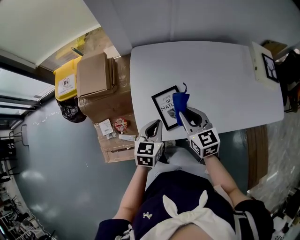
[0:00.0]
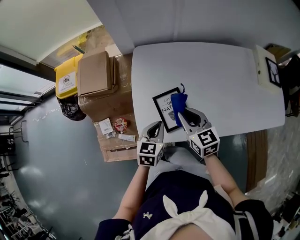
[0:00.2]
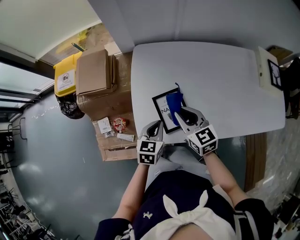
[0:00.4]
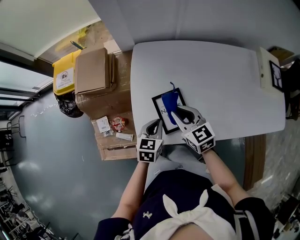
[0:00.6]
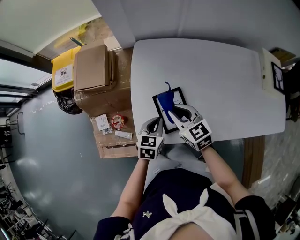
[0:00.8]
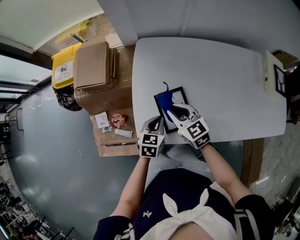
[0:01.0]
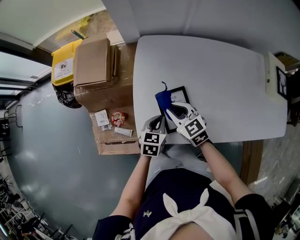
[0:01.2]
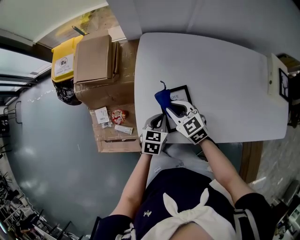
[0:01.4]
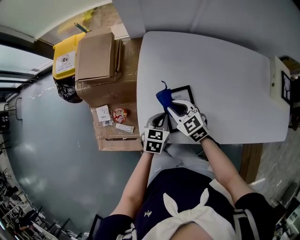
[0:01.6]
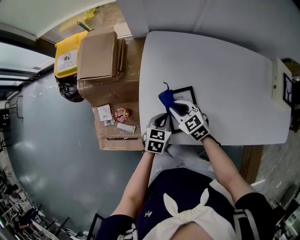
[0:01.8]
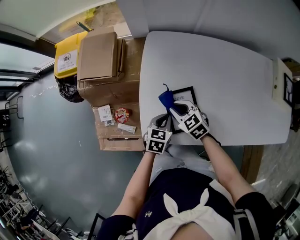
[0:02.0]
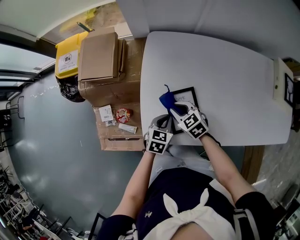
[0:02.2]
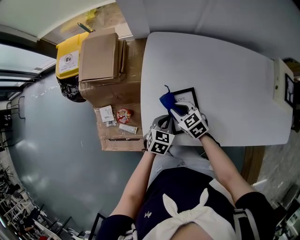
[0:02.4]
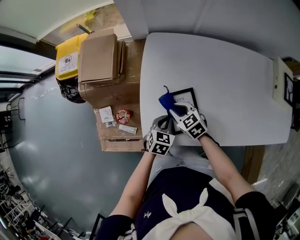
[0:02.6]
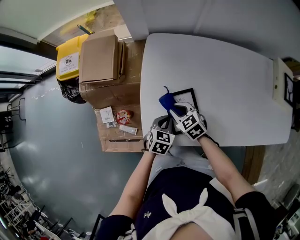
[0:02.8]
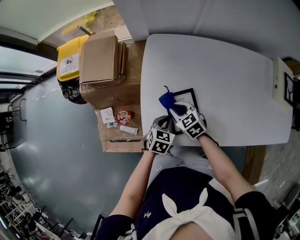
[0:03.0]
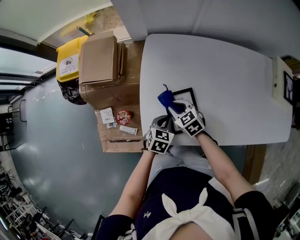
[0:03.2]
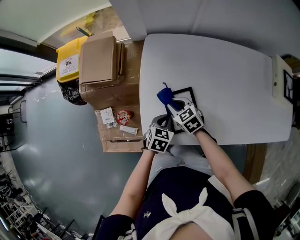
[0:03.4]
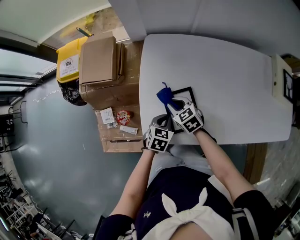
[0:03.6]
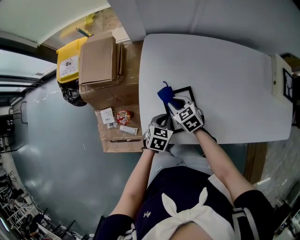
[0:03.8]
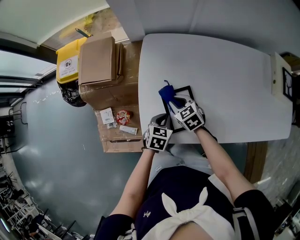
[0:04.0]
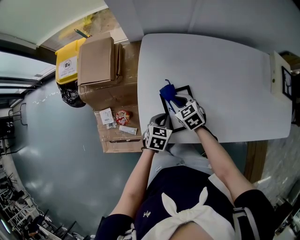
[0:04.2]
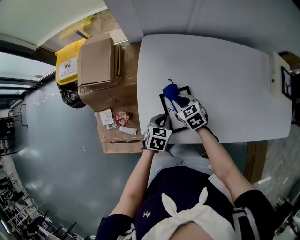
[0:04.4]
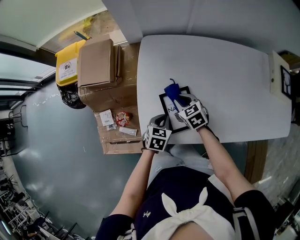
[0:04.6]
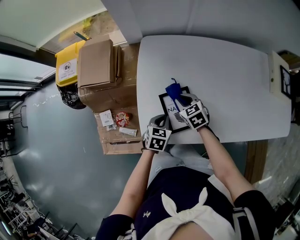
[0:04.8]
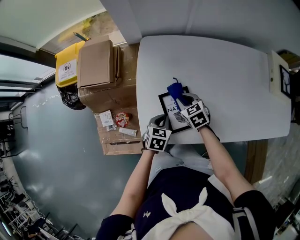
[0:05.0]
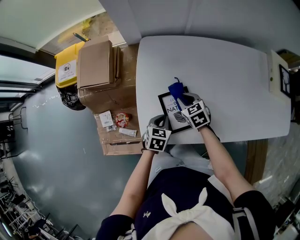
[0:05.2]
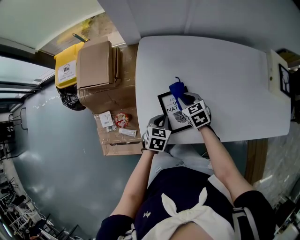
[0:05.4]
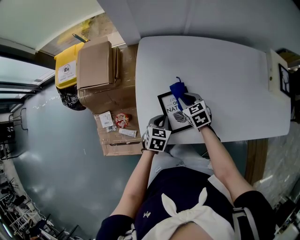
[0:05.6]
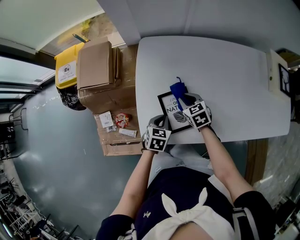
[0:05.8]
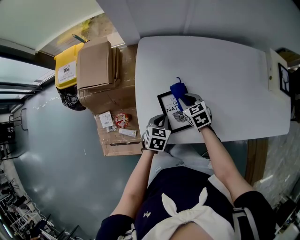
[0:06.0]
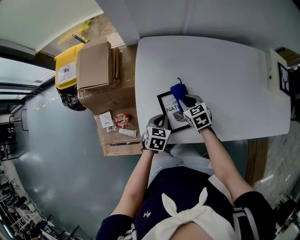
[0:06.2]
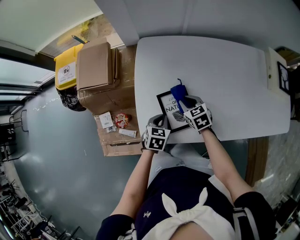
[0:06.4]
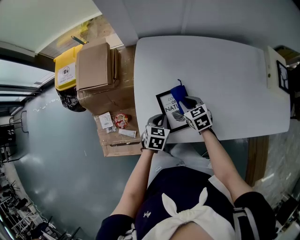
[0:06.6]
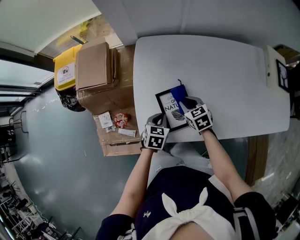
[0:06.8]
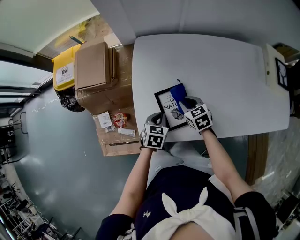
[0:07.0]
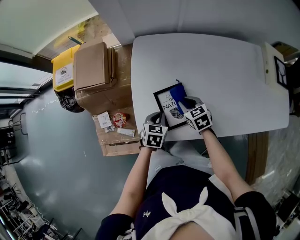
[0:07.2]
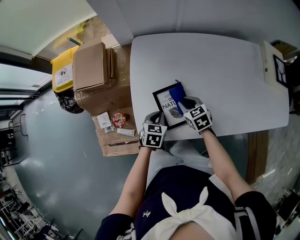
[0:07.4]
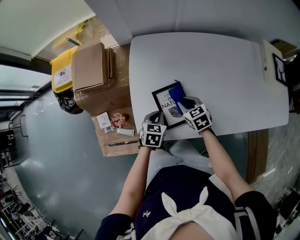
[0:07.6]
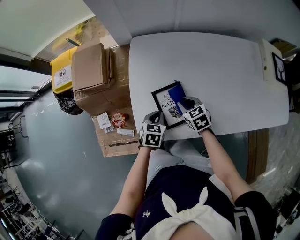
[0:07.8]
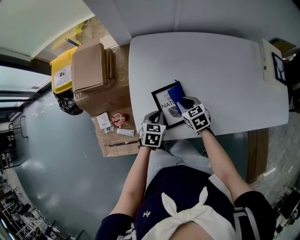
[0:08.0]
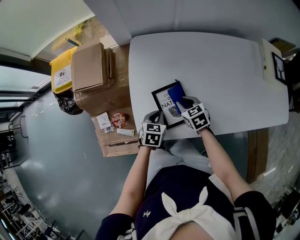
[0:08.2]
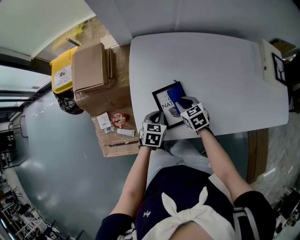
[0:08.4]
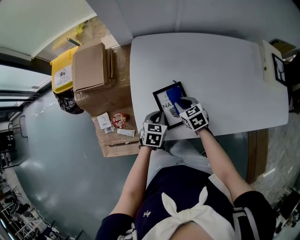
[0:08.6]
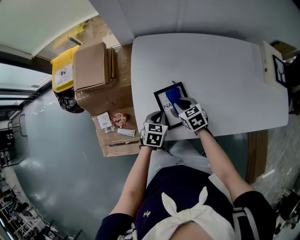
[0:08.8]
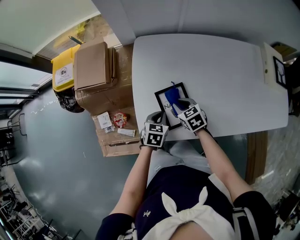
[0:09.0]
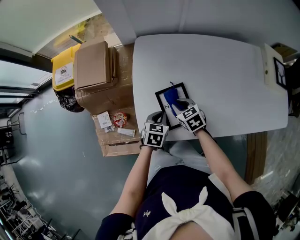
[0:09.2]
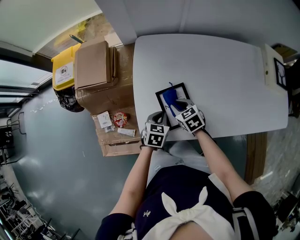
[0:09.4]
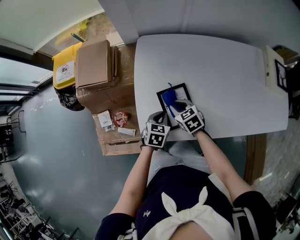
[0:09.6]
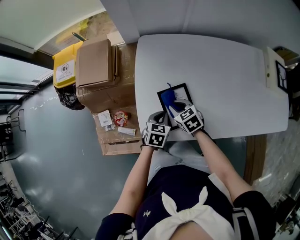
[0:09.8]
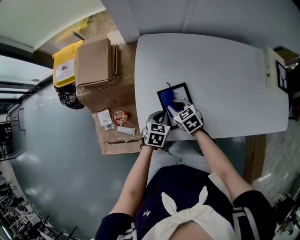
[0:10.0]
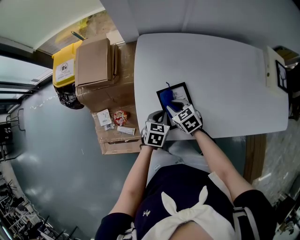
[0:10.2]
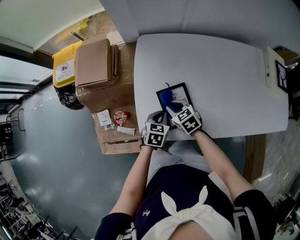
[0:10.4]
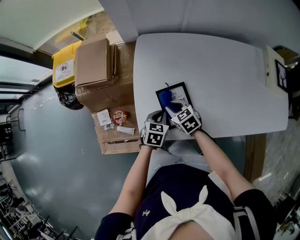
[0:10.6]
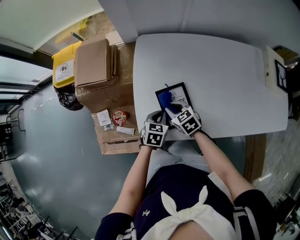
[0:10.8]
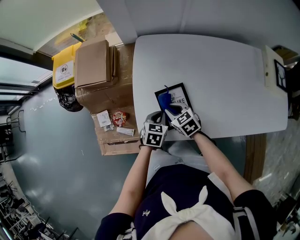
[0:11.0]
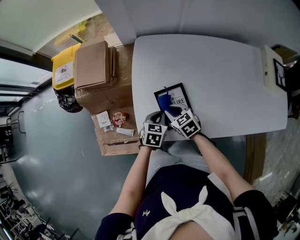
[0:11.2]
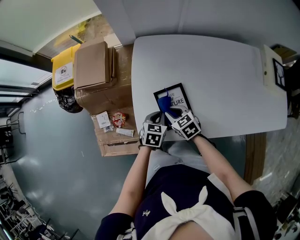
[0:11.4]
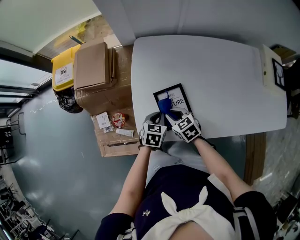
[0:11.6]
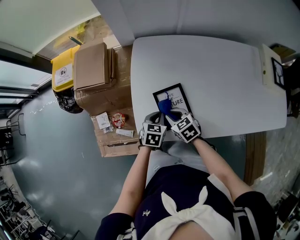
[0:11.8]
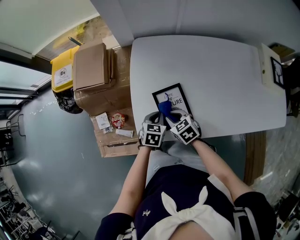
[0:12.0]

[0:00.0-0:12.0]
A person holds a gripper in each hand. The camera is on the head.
0.0 to 1.6 s: The left gripper moves downward, about 10 cm. Meanwhile the right gripper moves downward, to the left and forward, some 15 cm, and rotates about 30 degrees.
1.6 to 3.0 s: The grippers stay close to where they were, moving slightly.
3.0 to 4.4 s: The grippers stay close to where they were, moving slightly.
4.4 to 6.0 s: The grippers stay close to where they were, moving slightly.
6.0 to 9.0 s: The grippers make only small movements.
9.0 to 10.4 s: The grippers stay close to where they were, moving slightly.
10.4 to 12.0 s: The right gripper shifts approximately 5 cm backward.

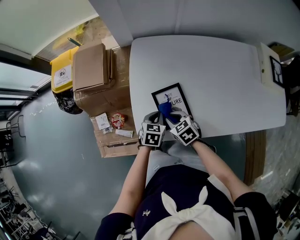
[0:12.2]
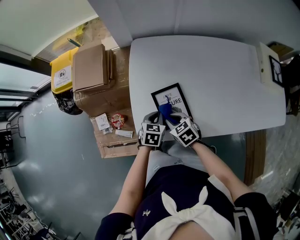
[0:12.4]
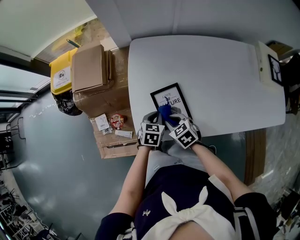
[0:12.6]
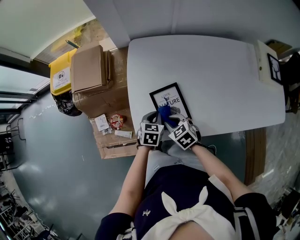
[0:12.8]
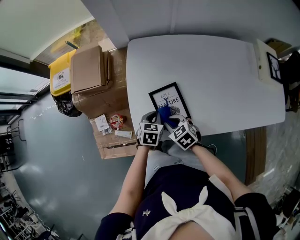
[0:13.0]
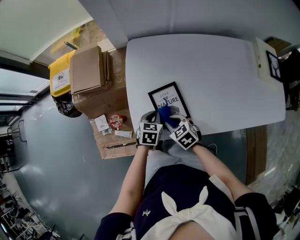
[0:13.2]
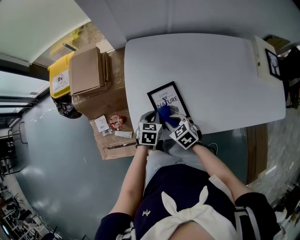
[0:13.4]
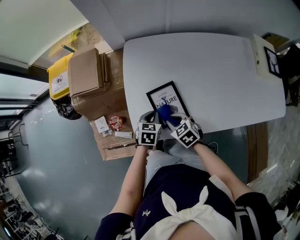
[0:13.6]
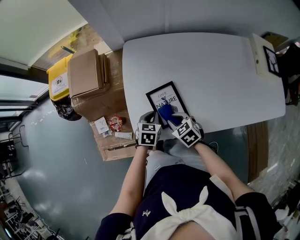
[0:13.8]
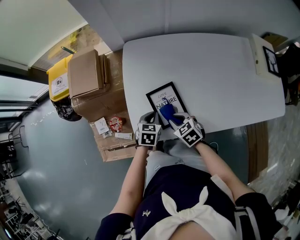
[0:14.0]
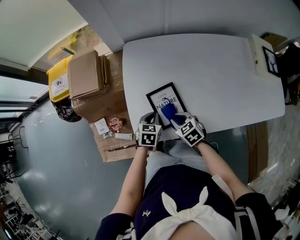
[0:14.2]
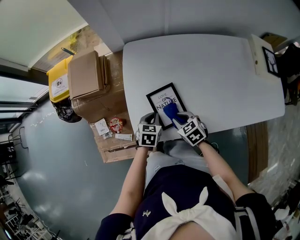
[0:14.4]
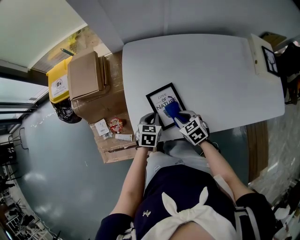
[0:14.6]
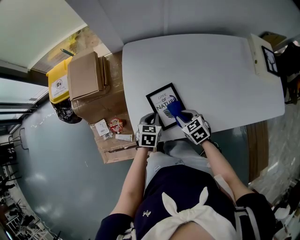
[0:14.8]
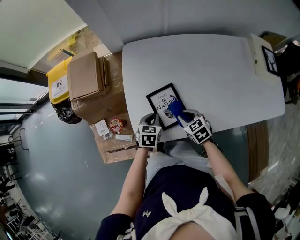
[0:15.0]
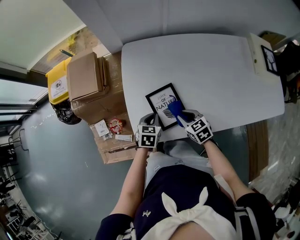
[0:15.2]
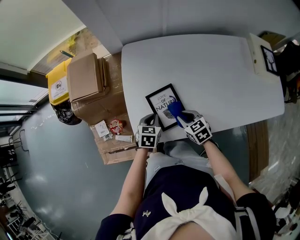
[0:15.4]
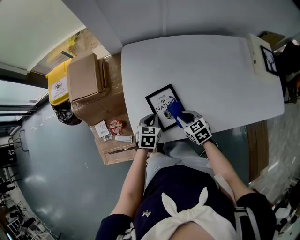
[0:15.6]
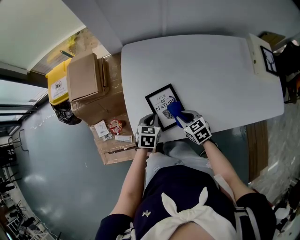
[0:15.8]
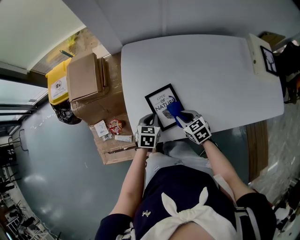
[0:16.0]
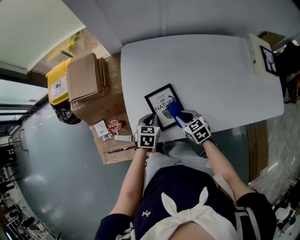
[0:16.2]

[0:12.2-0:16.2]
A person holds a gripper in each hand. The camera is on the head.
12.2 to 13.6 s: The grippers move only a little.
13.6 to 14.8 s: The right gripper moves to the right, some 5 cm.
14.8 to 16.2 s: The grippers make only small movements.

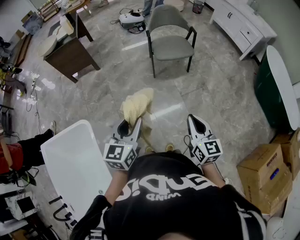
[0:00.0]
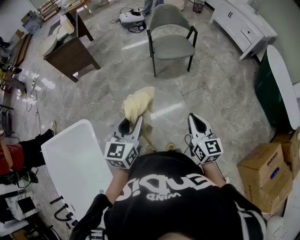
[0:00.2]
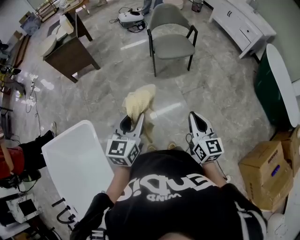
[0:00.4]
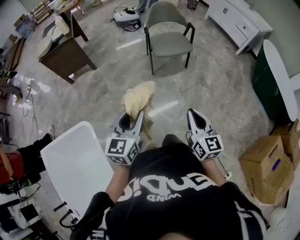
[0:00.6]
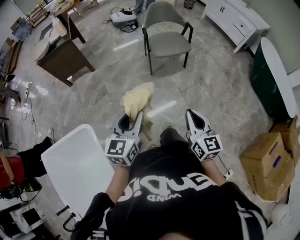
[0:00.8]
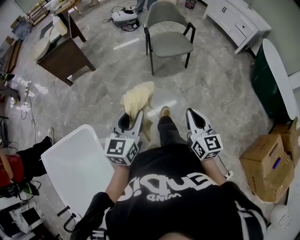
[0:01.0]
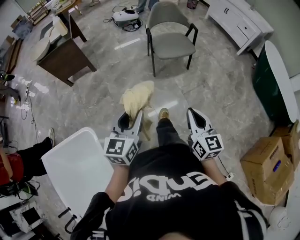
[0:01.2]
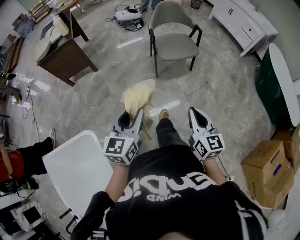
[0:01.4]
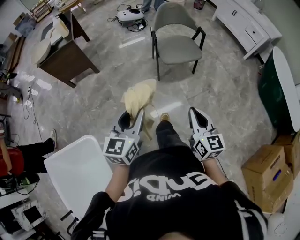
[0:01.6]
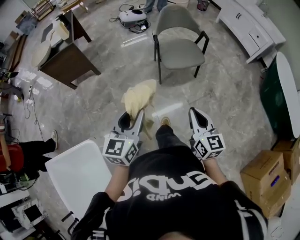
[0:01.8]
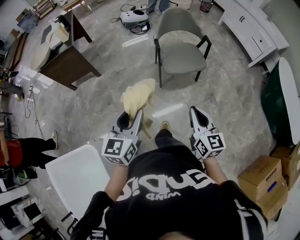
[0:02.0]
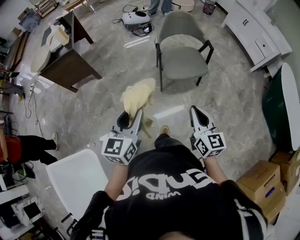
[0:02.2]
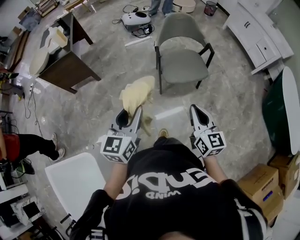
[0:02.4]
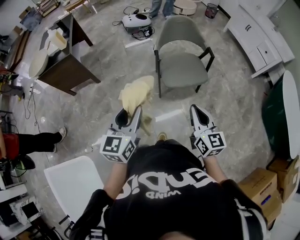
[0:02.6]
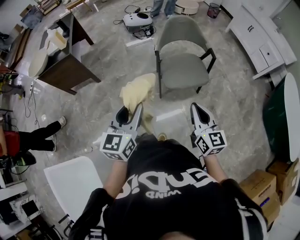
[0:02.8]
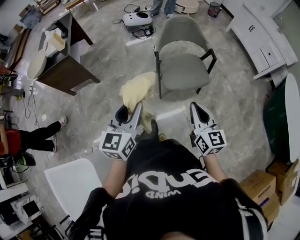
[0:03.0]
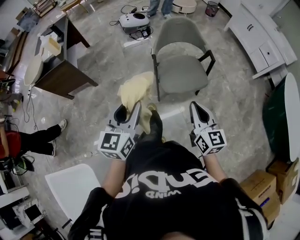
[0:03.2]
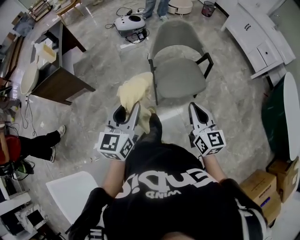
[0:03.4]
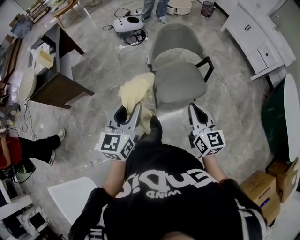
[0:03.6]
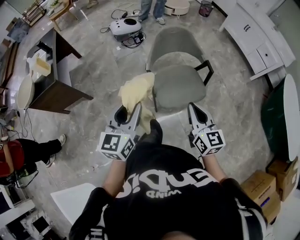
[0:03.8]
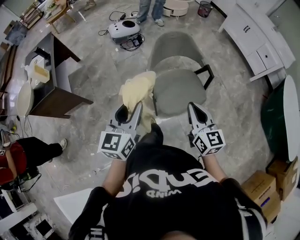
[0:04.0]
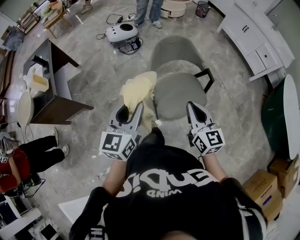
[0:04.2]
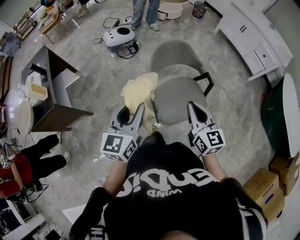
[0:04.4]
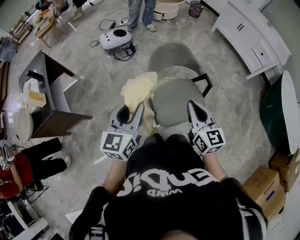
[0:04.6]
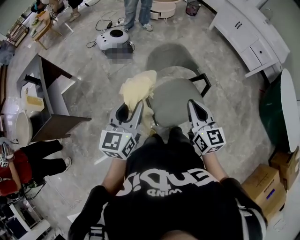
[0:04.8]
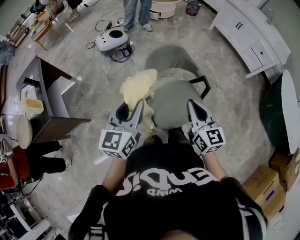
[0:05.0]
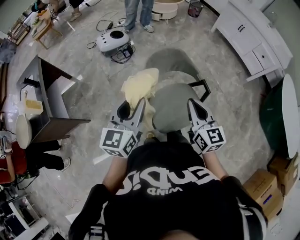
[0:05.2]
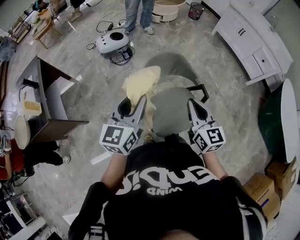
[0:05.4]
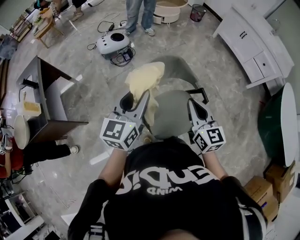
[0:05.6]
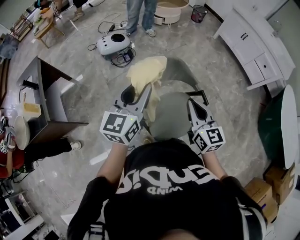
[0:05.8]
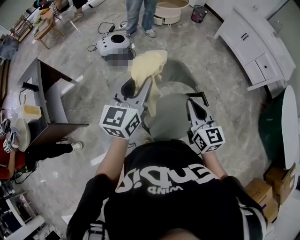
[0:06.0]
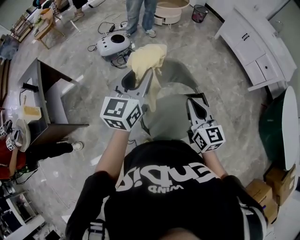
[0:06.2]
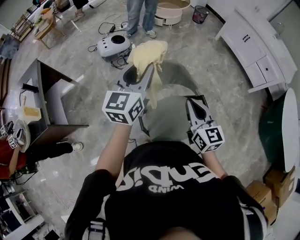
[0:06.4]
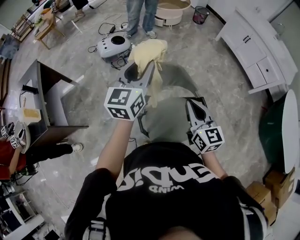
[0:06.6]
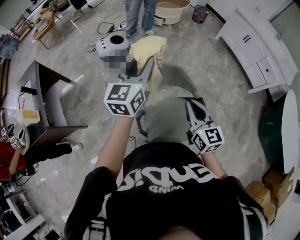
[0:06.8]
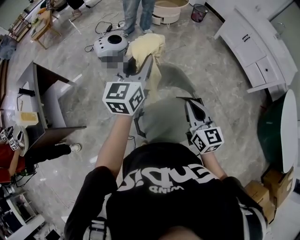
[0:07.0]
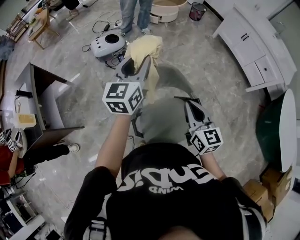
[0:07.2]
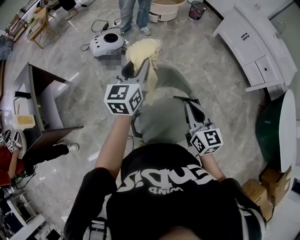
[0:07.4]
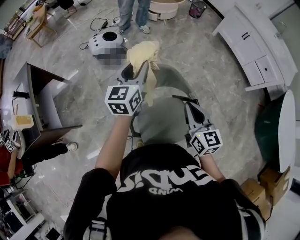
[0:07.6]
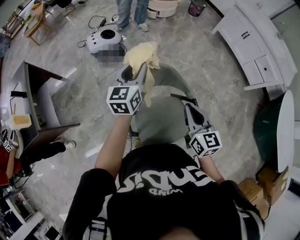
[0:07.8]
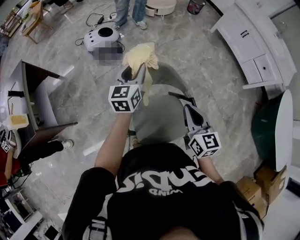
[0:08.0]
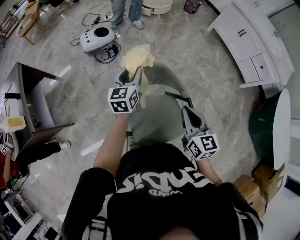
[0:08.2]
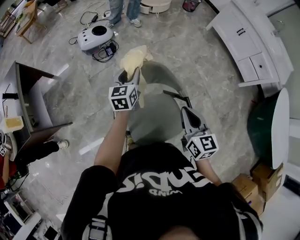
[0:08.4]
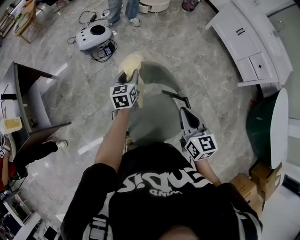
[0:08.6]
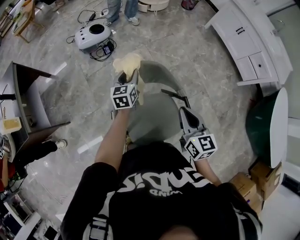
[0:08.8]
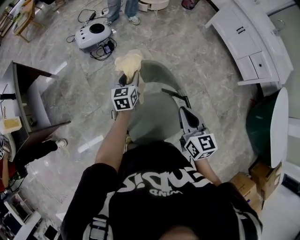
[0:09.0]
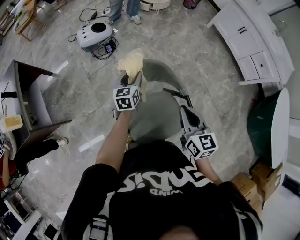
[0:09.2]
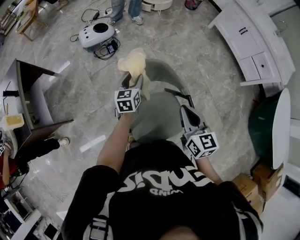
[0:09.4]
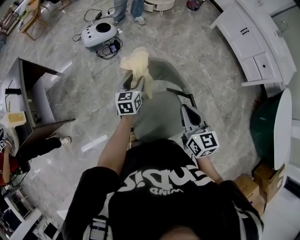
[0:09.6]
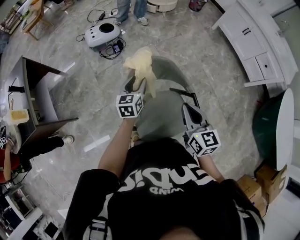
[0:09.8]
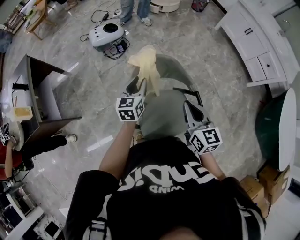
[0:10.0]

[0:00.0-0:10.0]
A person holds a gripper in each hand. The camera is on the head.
0.0 to 1.4 s: The two grippers go approximately 15 cm forward and to the left.
1.4 to 2.8 s: Both grippers travel together forward, roughly 35 cm.
2.8 to 4.2 s: The two grippers go roughly 30 cm forward.
4.2 to 5.8 s: The two grippers go roughly 25 cm forward.
5.8 to 7.2 s: The left gripper moves forward, about 20 cm; the right gripper moves forward, about 10 cm.
7.2 to 8.6 s: The left gripper heads downward, covering about 25 cm, and rotates about 20 degrees. Meanwhile the right gripper shifts approximately 5 cm to the right.
8.6 to 10.0 s: The left gripper heads backward, covering some 10 cm.
